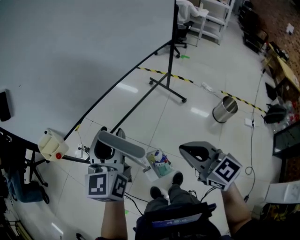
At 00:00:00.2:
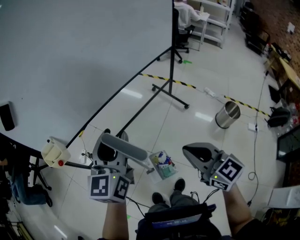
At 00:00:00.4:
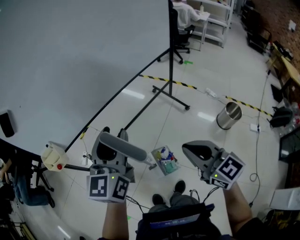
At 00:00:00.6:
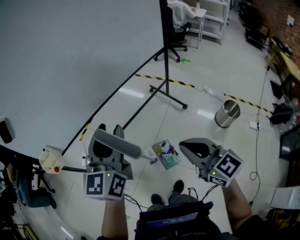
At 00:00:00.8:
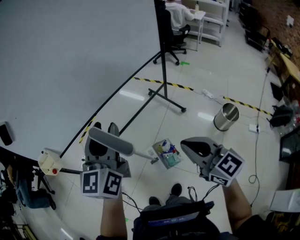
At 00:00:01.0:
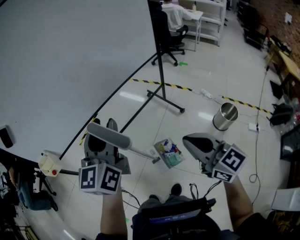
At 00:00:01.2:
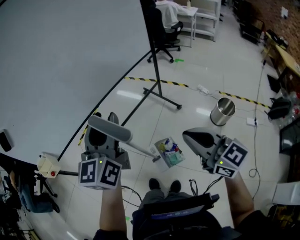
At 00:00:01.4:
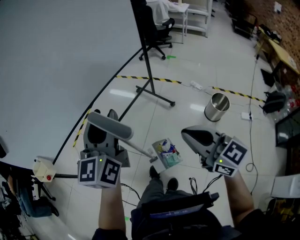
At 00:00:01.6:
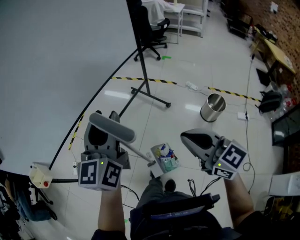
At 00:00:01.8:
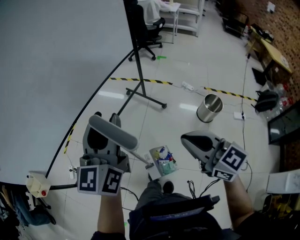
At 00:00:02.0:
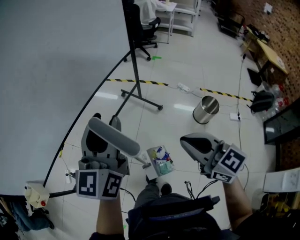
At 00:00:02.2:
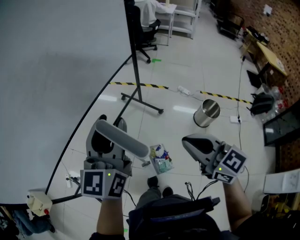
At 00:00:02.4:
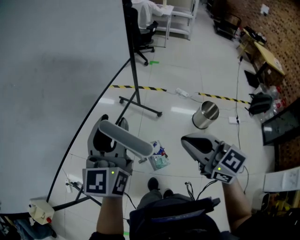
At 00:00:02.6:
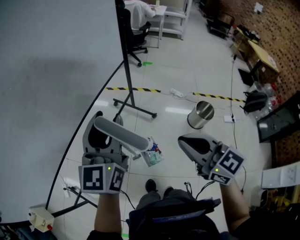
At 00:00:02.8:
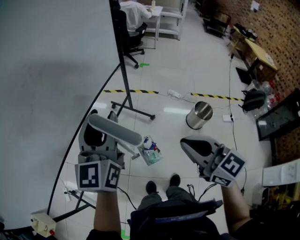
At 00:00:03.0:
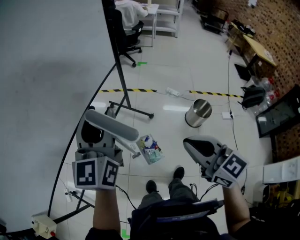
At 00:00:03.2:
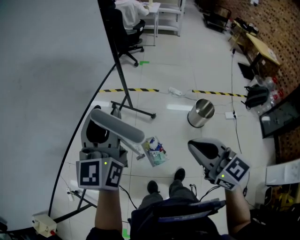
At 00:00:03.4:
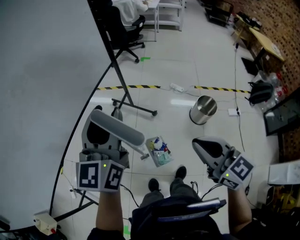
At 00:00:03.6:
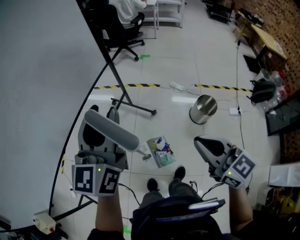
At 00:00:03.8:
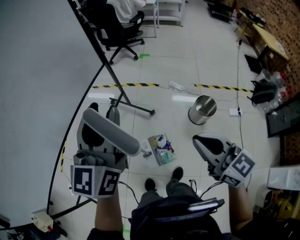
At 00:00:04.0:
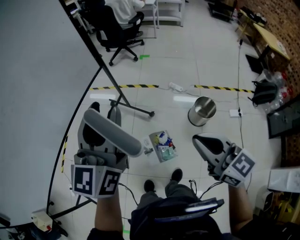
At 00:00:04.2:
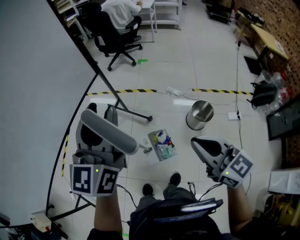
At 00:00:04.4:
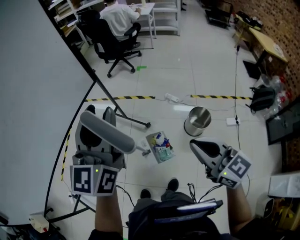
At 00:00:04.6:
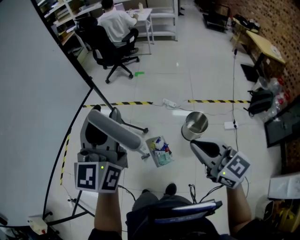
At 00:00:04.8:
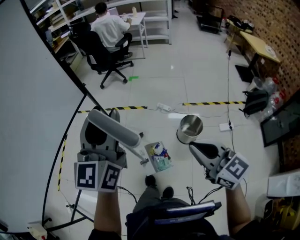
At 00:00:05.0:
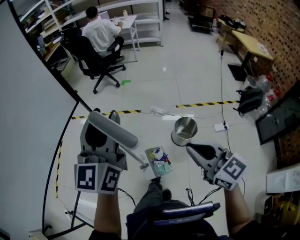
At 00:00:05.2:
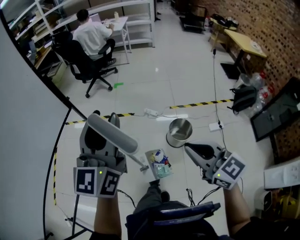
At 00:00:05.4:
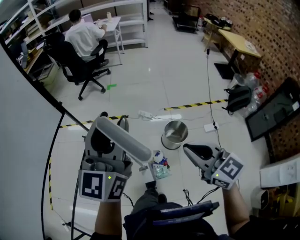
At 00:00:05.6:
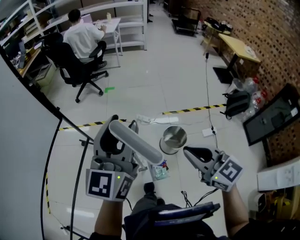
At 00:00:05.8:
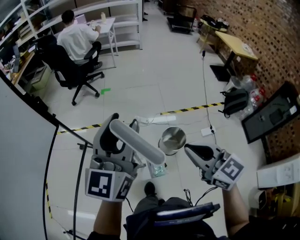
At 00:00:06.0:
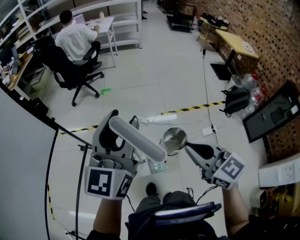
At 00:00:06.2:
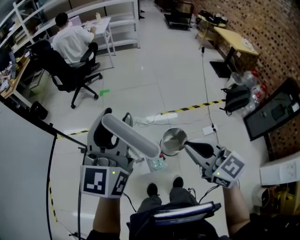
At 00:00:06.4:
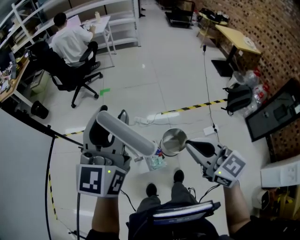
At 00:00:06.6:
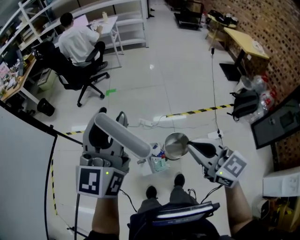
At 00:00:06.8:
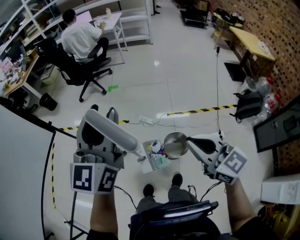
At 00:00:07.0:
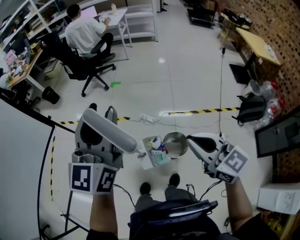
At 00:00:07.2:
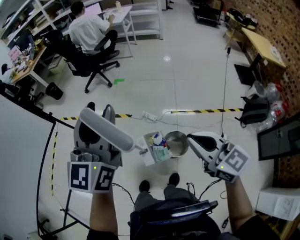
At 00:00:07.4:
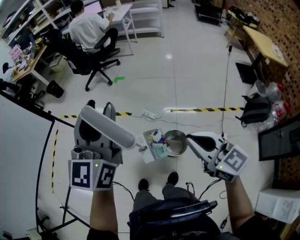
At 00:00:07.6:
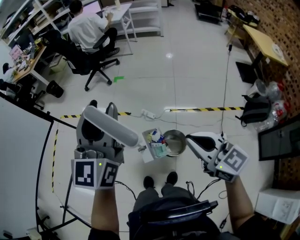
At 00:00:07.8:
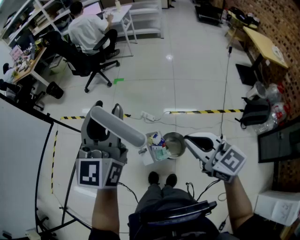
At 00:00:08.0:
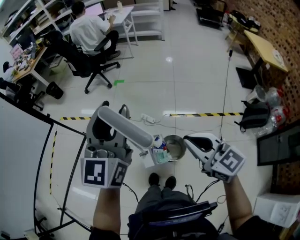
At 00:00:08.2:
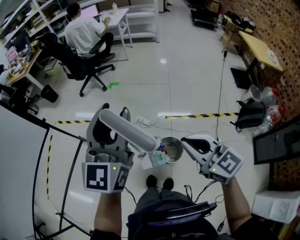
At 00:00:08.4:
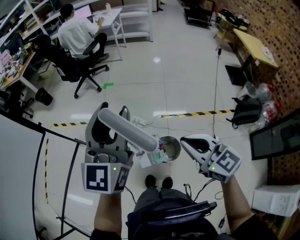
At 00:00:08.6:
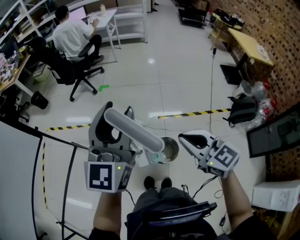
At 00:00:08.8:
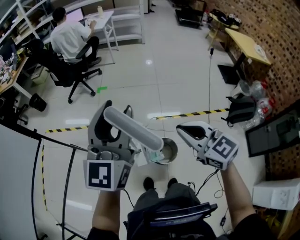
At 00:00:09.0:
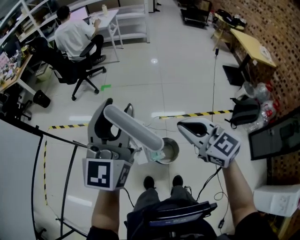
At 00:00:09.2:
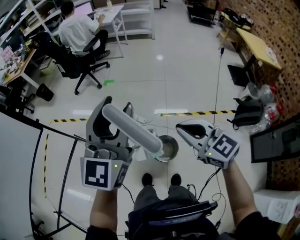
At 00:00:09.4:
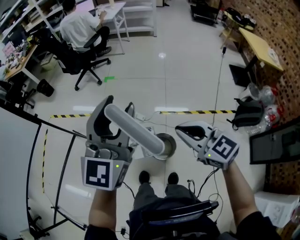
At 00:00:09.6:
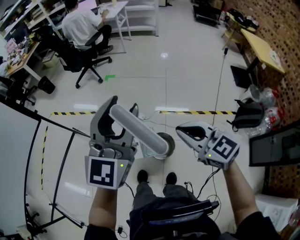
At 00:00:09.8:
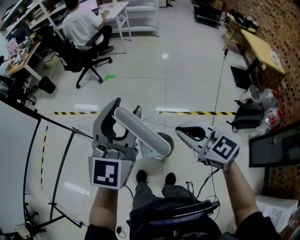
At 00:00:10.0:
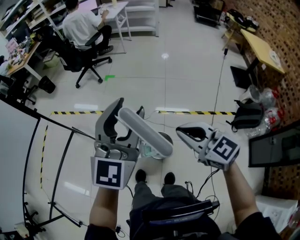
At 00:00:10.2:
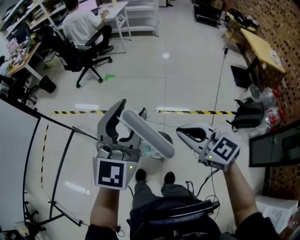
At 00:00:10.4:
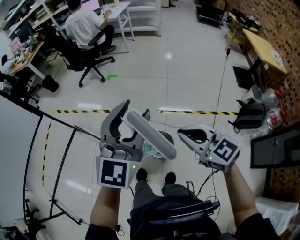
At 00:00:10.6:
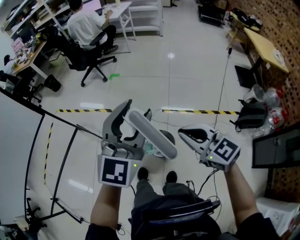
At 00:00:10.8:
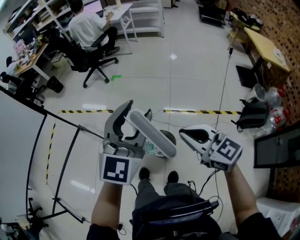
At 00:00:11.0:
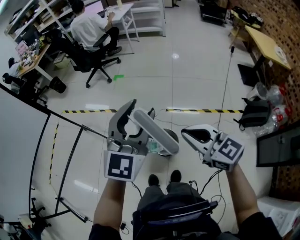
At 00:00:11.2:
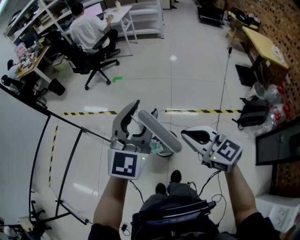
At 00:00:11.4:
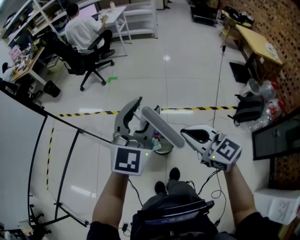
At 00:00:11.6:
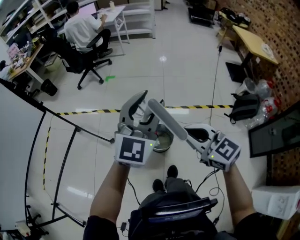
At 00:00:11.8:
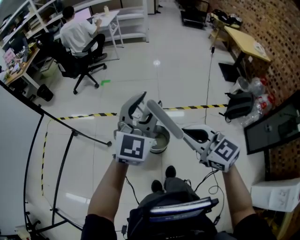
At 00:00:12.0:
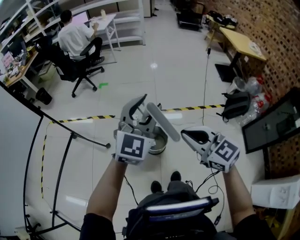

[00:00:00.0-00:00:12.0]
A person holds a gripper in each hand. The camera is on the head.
00:00:00.0 to 00:00:01.6: The grippers both shift to the right by some 25 cm.
00:00:01.6 to 00:00:03.0: The grippers both shift forward by some 15 cm.
00:00:03.0 to 00:00:04.4: Both grippers move to the right, some 25 cm.
00:00:04.4 to 00:00:06.0: The left gripper goes about 25 cm to the right and forward, and rotates roughly 20 degrees, while the right gripper moves forward and to the right, some 20 cm.
00:00:06.0 to 00:00:07.6: The grippers both shift to the right by roughly 15 cm.
00:00:07.6 to 00:00:09.0: The left gripper is displaced to the right by about 5 cm. The right gripper moves forward, roughly 10 cm.
00:00:09.0 to 00:00:10.4: The right gripper goes some 10 cm backward and to the right. The left gripper shifts about 15 cm to the right and backward.
00:00:10.4 to 00:00:12.0: The right gripper is displaced backward by some 15 cm, while the left gripper goes approximately 10 cm backward.

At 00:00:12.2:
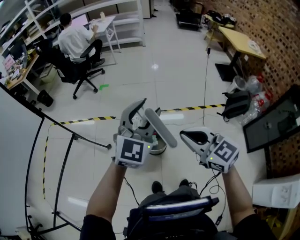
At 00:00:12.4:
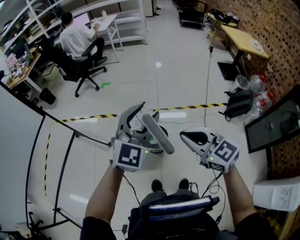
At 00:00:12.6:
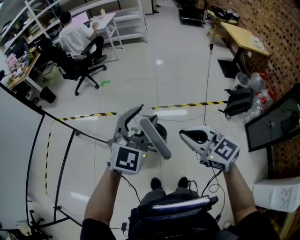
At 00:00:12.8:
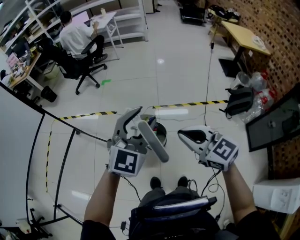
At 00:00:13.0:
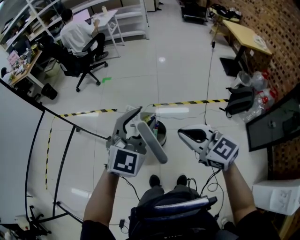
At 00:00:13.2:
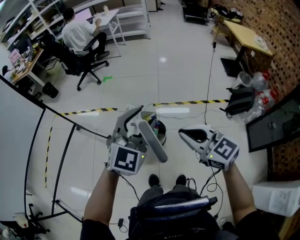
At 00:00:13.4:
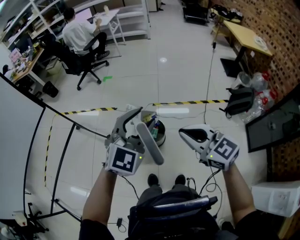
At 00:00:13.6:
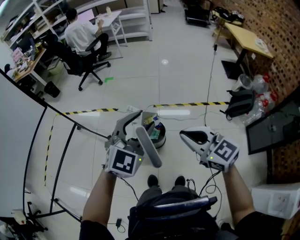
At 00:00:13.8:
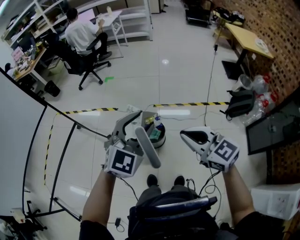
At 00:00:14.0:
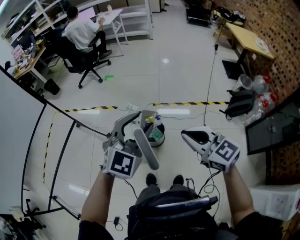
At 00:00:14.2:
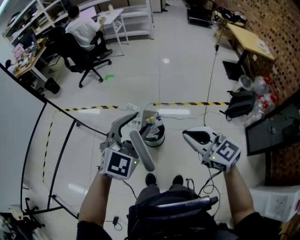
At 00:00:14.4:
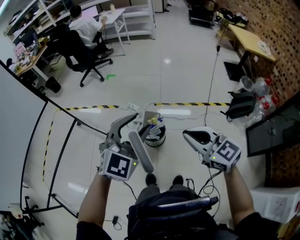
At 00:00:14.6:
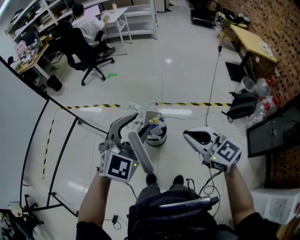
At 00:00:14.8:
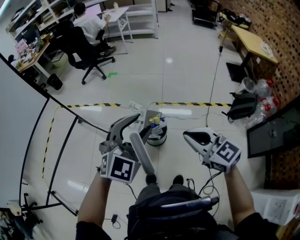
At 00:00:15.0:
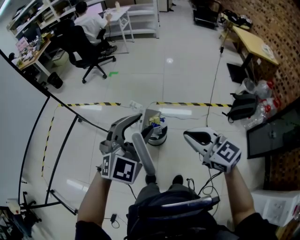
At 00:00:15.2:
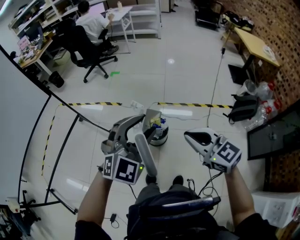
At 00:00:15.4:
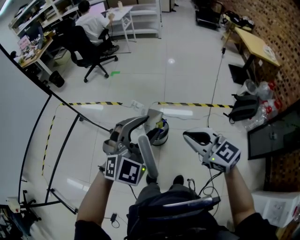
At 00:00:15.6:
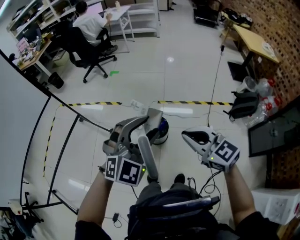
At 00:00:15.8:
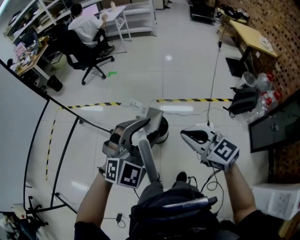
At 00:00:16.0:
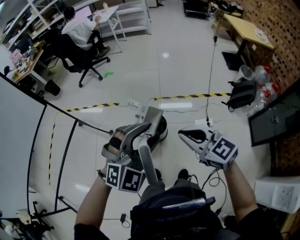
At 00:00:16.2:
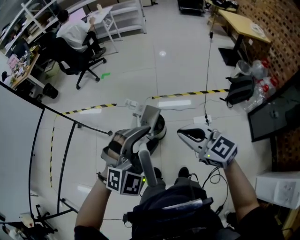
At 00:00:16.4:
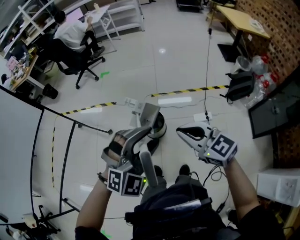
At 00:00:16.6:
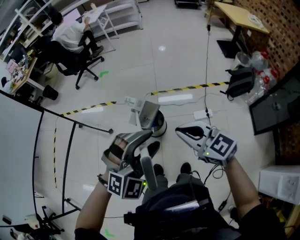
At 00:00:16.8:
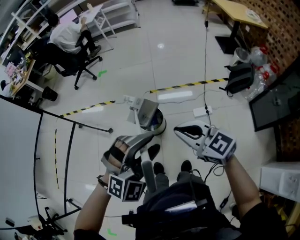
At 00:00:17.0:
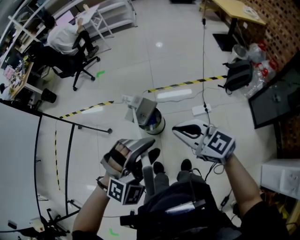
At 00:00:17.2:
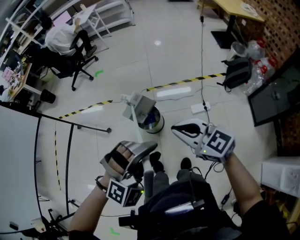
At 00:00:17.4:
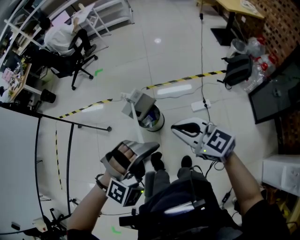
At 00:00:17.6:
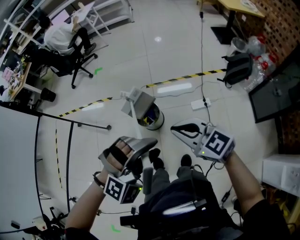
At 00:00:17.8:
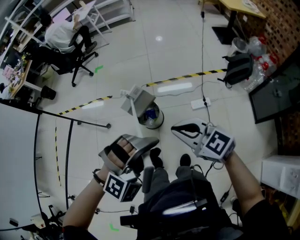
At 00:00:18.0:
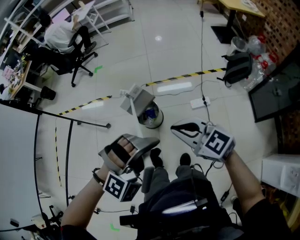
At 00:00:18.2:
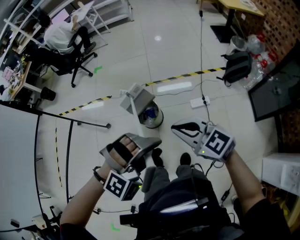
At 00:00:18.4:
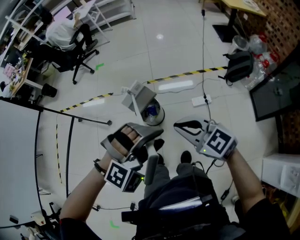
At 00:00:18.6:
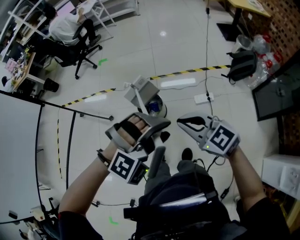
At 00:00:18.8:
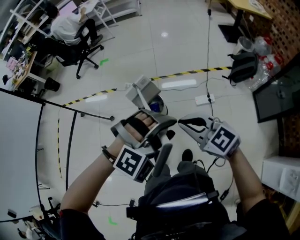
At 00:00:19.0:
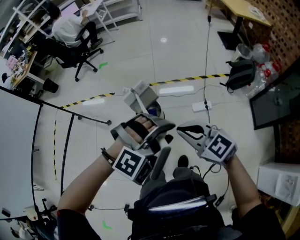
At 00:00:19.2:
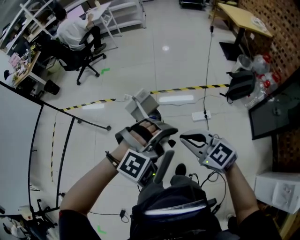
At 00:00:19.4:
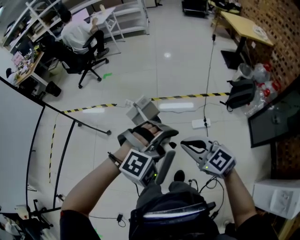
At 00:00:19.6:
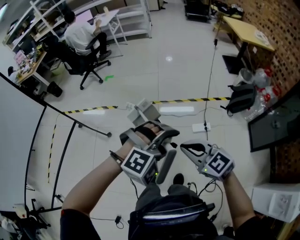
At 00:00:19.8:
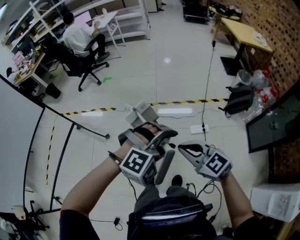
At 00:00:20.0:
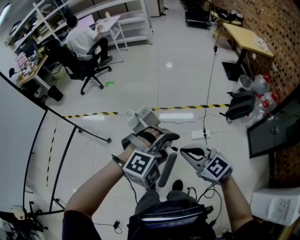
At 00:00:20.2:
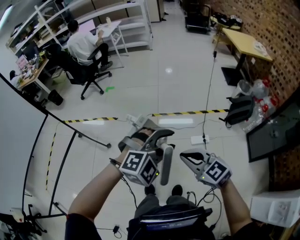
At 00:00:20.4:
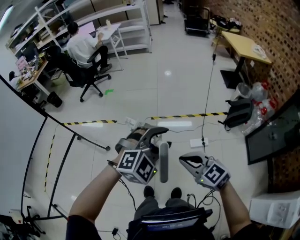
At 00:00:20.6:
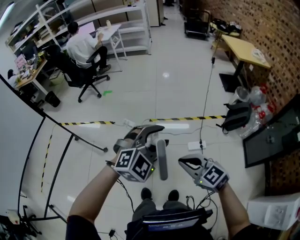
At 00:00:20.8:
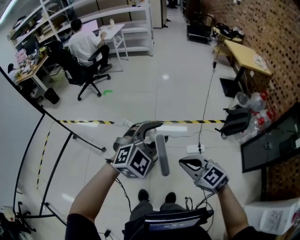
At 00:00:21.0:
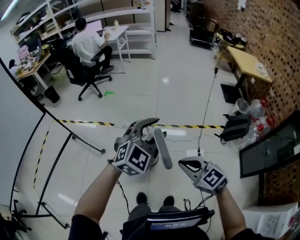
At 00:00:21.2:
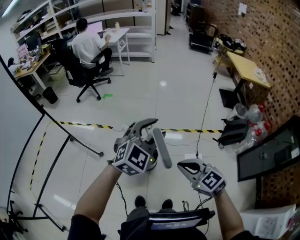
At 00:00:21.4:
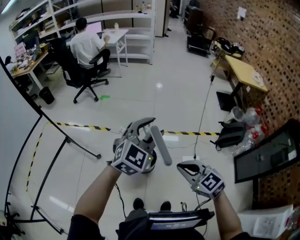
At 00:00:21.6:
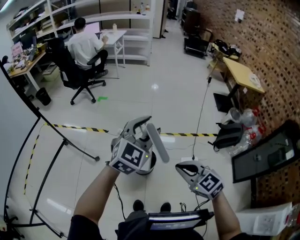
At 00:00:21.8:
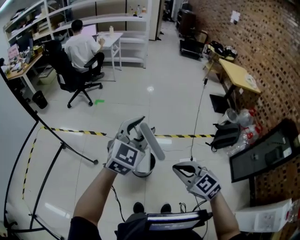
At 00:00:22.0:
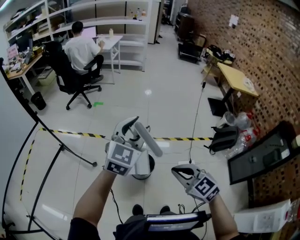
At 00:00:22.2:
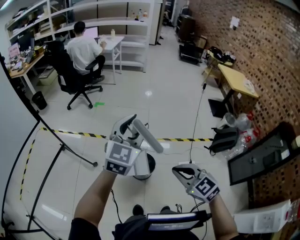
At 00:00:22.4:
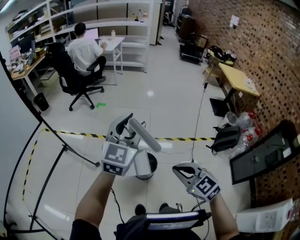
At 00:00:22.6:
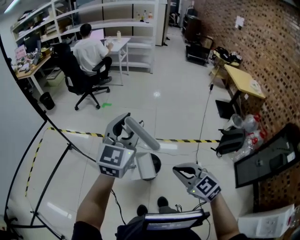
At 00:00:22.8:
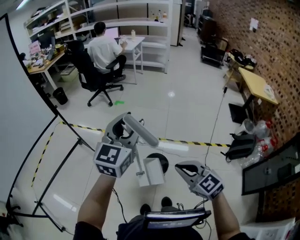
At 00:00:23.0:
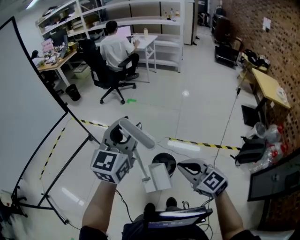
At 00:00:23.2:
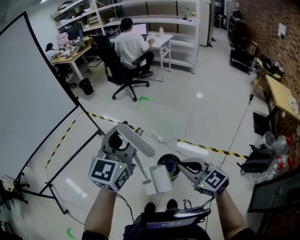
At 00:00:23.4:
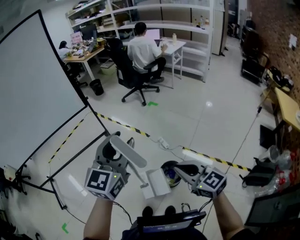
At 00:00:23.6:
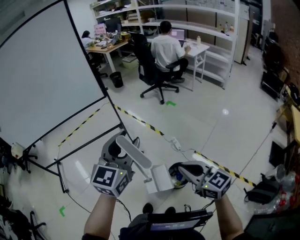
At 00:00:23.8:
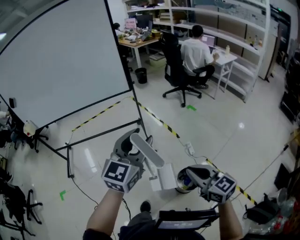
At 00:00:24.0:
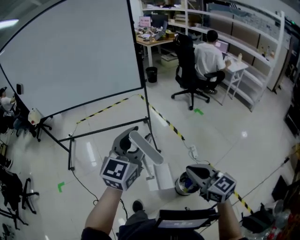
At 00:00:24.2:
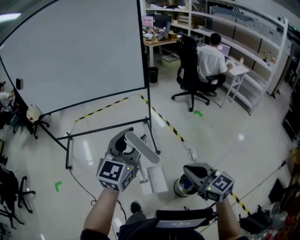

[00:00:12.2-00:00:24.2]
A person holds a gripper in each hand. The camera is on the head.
00:00:12.2 to 00:00:13.8: The right gripper goes about 5 cm to the right. Meanwhile the left gripper moves backward, about 10 cm.
00:00:13.8 to 00:00:15.2: There are only small adjustments of the grippers.
00:00:15.2 to 00:00:16.6: The right gripper changes place by roughly 5 cm; the left gripper moves to the right and backward, about 10 cm, and turns by some 20 degrees.
00:00:16.6 to 00:00:18.2: The left gripper heads backward and to the right, covering some 10 cm, and changes its angle by roughly 30 degrees; the right gripper ends up approximately 5 cm from where it was.
00:00:18.2 to 00:00:19.8: The left gripper is displaced forward by about 5 cm.
00:00:19.8 to 00:00:21.2: The left gripper moves forward, to the left and upward, some 20 cm, and swivels some 50 degrees; the right gripper travels forward by roughly 5 cm.
00:00:21.2 to 00:00:22.6: The left gripper is displaced to the left and upward by roughly 20 cm, and rotates some 30 degrees. Meanwhile the right gripper travels to the left by about 10 cm.
00:00:22.6 to 00:00:24.2: The left gripper shifts by roughly 30 cm, and rotates about 50 degrees; the right gripper ends up about 20 cm from where it was, and swivels approximately 50 degrees.
